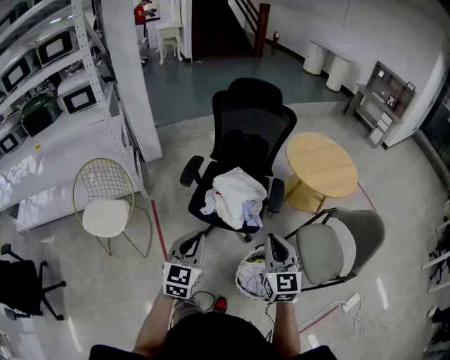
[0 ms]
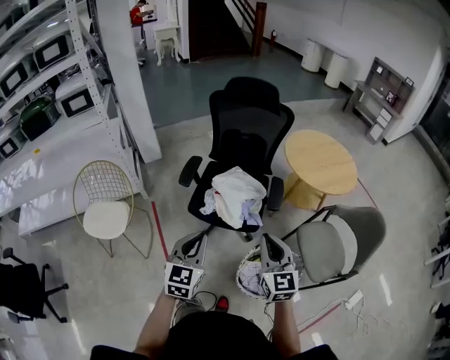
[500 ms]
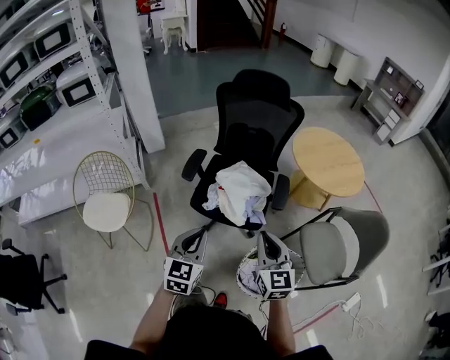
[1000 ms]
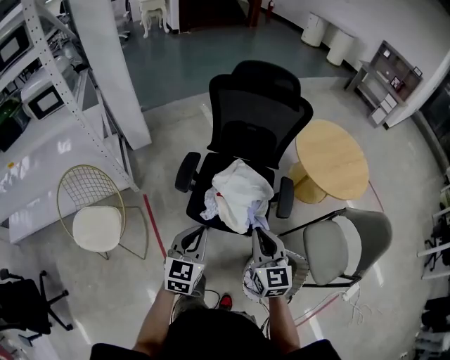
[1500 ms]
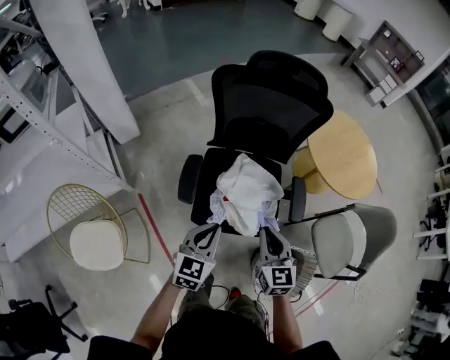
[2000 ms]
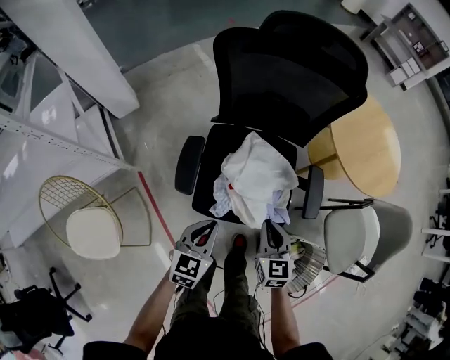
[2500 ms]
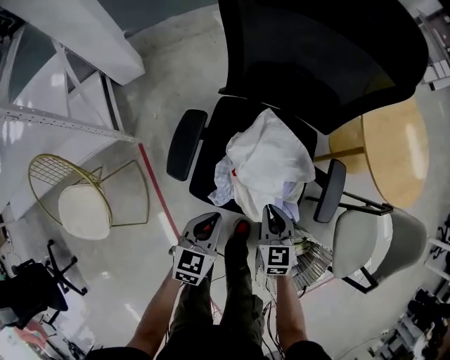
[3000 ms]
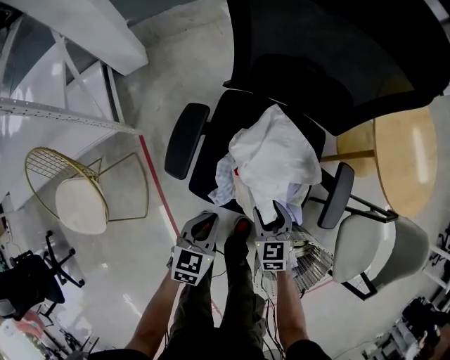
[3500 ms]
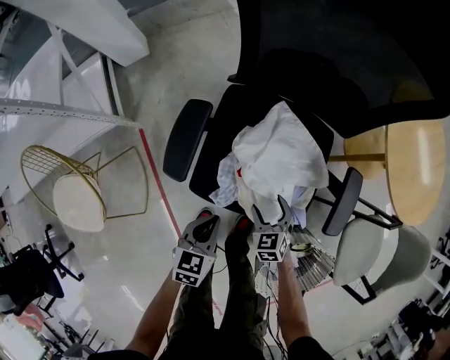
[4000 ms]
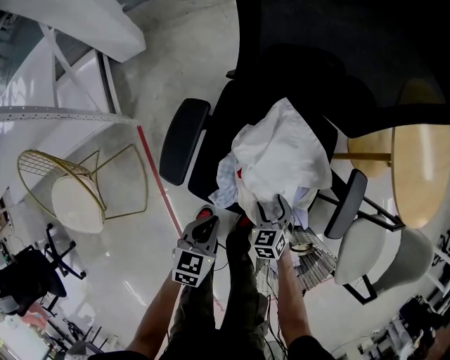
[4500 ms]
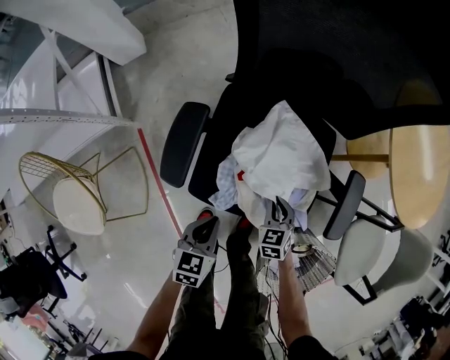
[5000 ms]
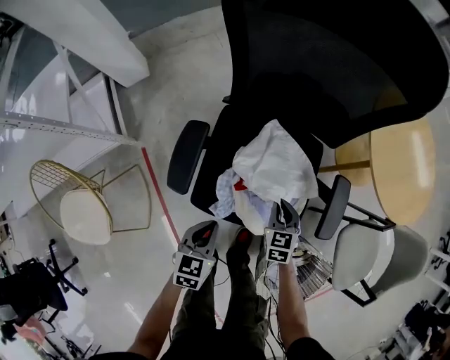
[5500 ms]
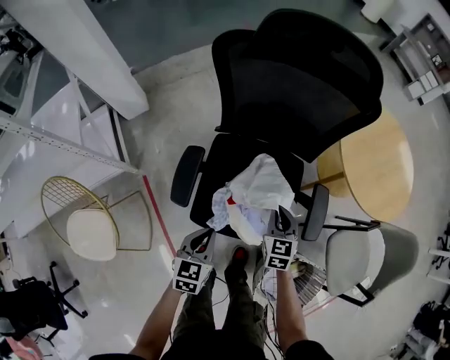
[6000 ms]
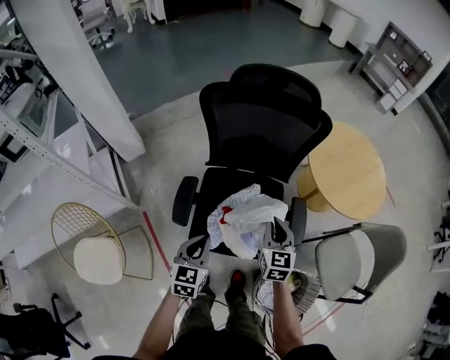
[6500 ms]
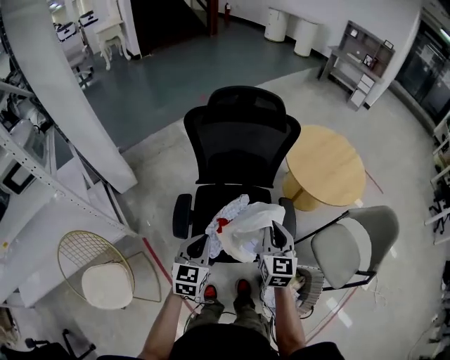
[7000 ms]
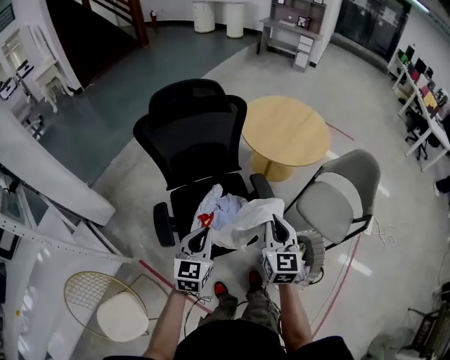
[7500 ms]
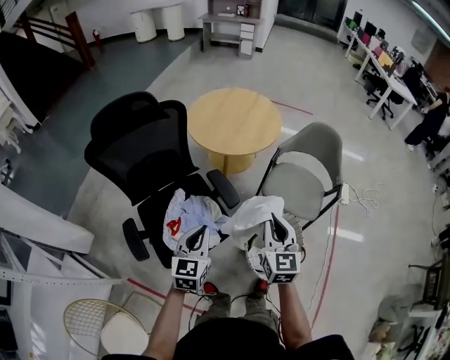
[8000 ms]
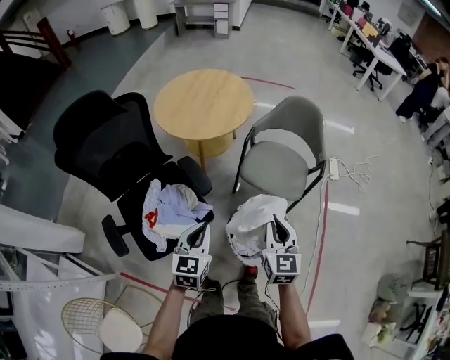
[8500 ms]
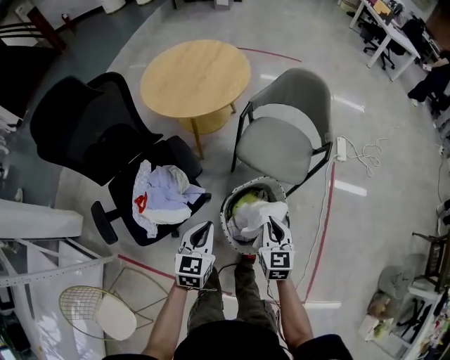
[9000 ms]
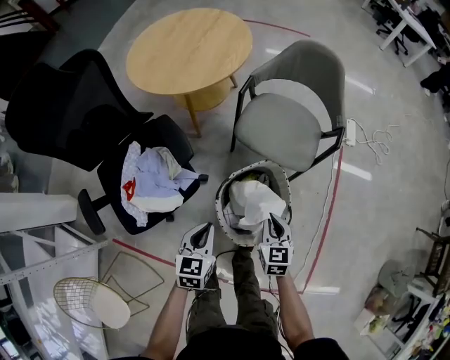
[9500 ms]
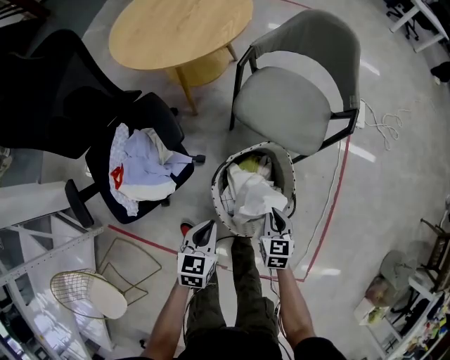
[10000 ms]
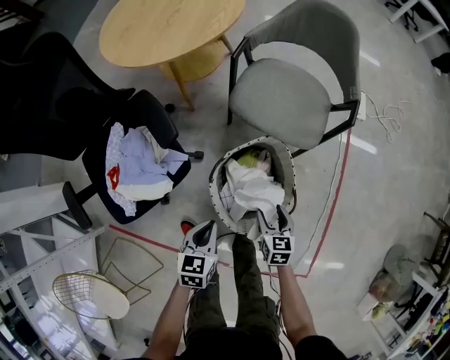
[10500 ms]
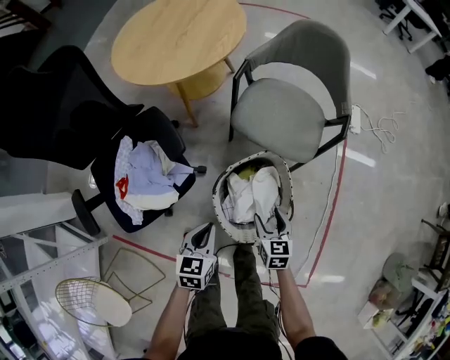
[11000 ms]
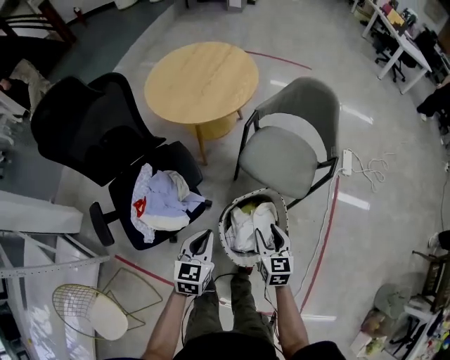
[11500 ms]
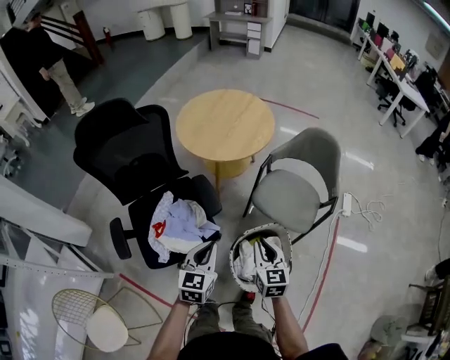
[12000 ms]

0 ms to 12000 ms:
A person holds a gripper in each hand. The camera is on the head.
0 ms to 2000 ms: The right gripper heads forward, to the left and downward, covering about 35 cm; the left gripper goes roughly 30 cm forward and downward, and rotates roughly 20 degrees.
2000 ms to 4000 ms: Both grippers move downward, some 35 cm. The right gripper tips its fingers downward by some 30 degrees, and opens its fingers. The left gripper turns by roughly 30 degrees.
4000 ms to 6000 ms: The right gripper moves upward and forward, approximately 20 cm, changes its angle by about 30 degrees, and closes its fingers; the left gripper goes some 10 cm upward.
6000 ms to 8000 ms: The right gripper ends up about 50 cm from where it was, and swivels about 50 degrees, while the left gripper is displaced upward by some 20 cm, and changes its angle by roughly 50 degrees.
8000 ms to 10000 ms: Both grippers move downward and to the right, roughly 40 cm. The right gripper tilts its fingers roughly 30 degrees downward. Meanwhile the left gripper rotates about 30 degrees.
10000 ms to 12000 ms: The right gripper shifts some 30 cm upward and to the left, turns by some 20 degrees, and opens, then closes once more. The left gripper travels upward by about 25 cm, and swivels some 20 degrees.

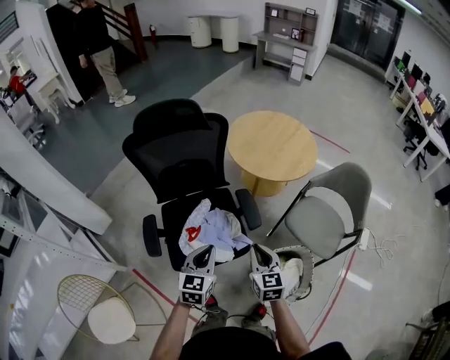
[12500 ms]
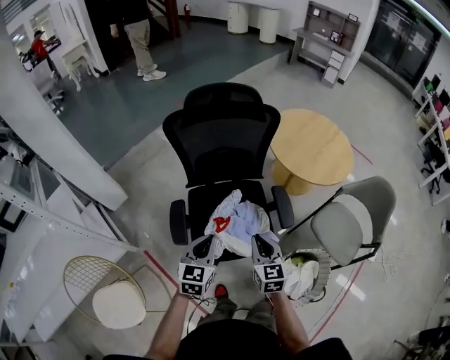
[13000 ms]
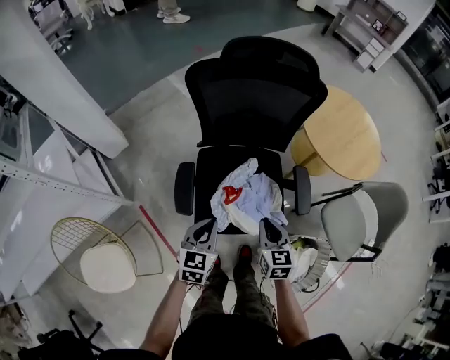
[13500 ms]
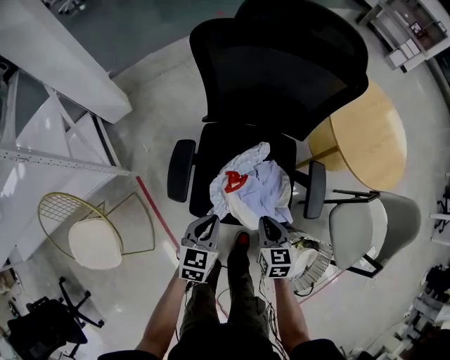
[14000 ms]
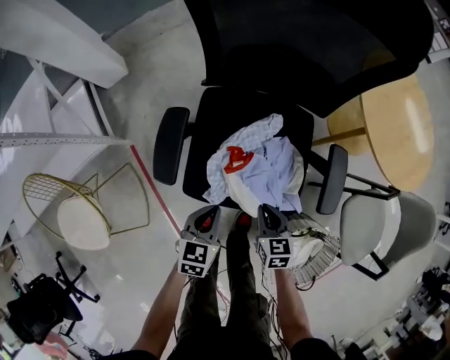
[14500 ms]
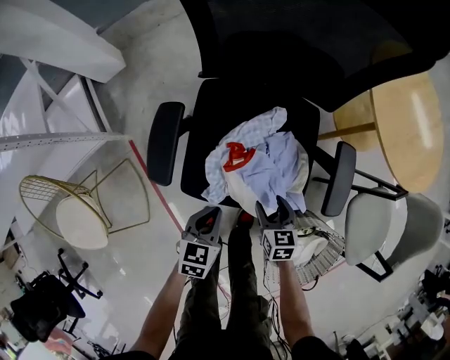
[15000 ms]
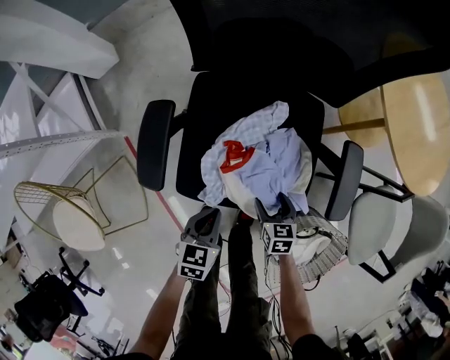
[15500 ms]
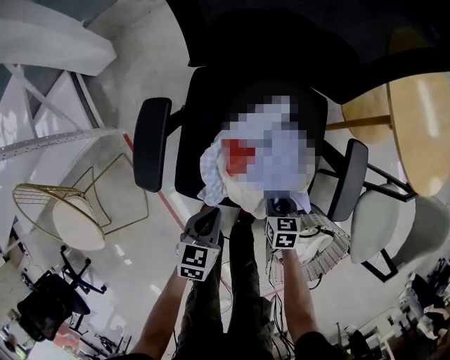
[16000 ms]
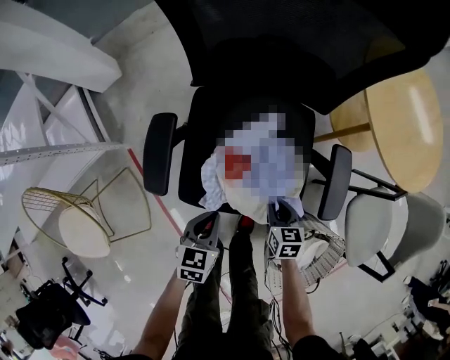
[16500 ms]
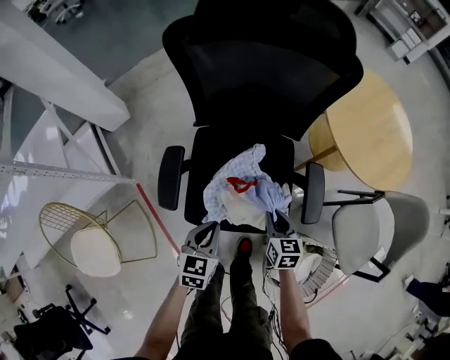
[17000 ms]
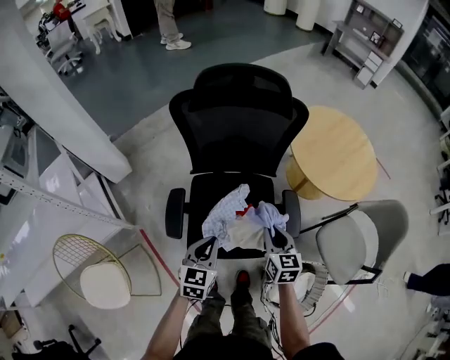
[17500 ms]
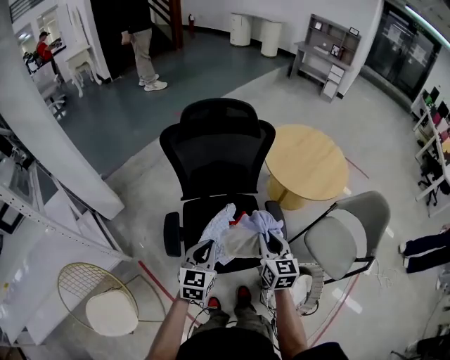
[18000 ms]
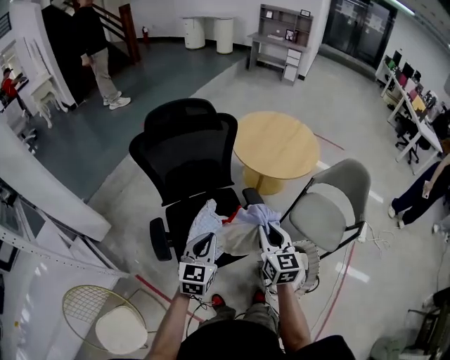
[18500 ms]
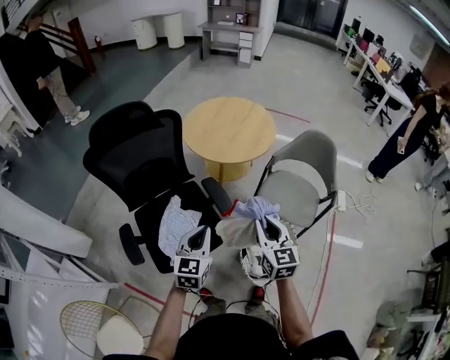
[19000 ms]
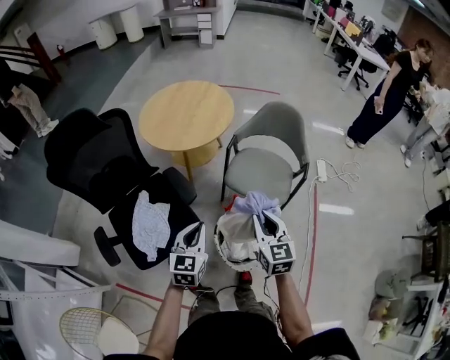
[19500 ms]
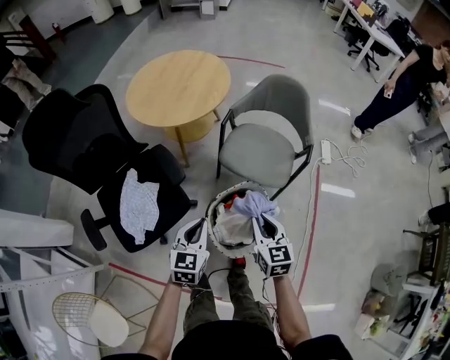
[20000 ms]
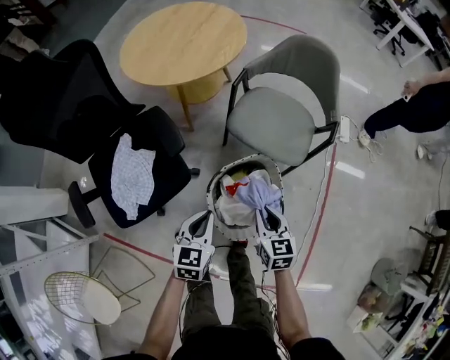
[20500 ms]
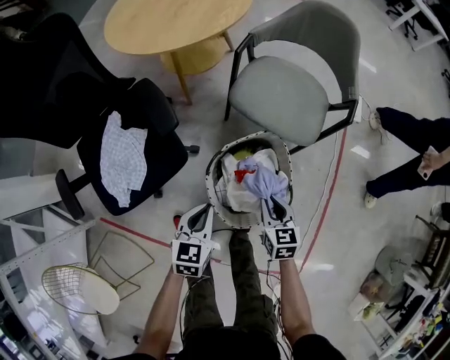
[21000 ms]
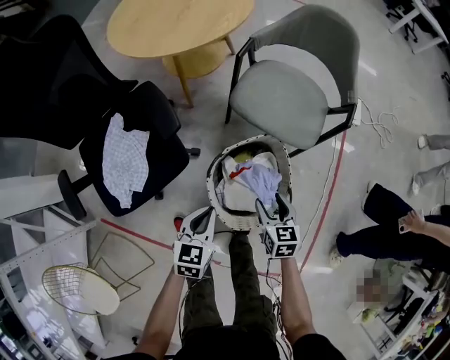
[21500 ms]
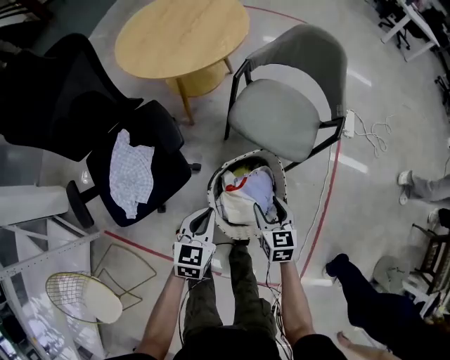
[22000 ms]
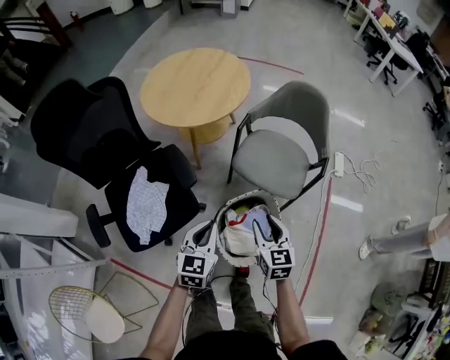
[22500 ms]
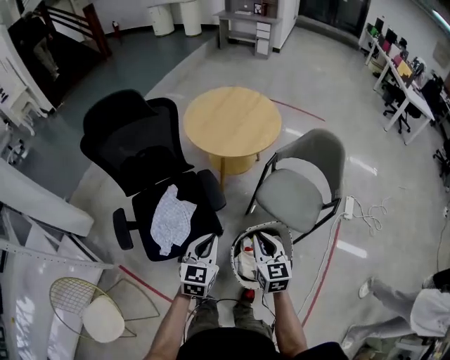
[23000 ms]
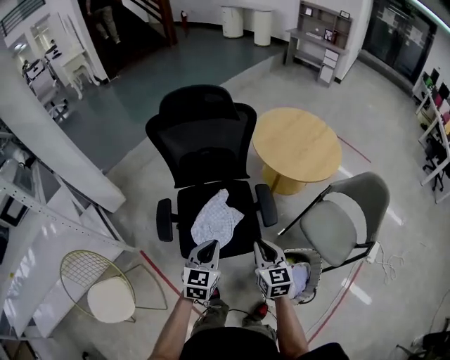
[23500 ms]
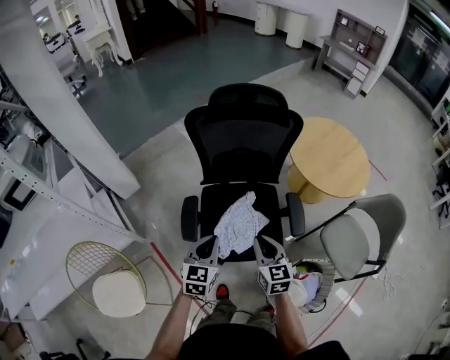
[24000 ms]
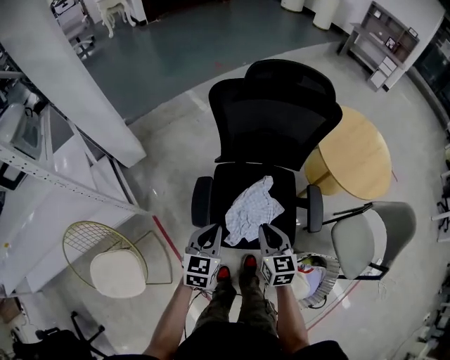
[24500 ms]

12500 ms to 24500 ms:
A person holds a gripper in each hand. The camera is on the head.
12500 ms to 14500 ms: Both grippers move downward and to the left, some 35 cm. The left gripper rotates some 30 degrees; the right gripper rotates approximately 40 degrees.
14500 ms to 16500 ms: The right gripper heads downward and to the right, covering roughly 10 cm, and opens, then closes again.
16500 ms to 18500 ms: Both grippers travel together upward, roughly 40 cm. The left gripper rotates about 40 degrees; the right gripper tilts its fingers some 40 degrees upward.
18500 ms to 20500 ms: The grippers both shift to the right and downward by about 40 cm. The right gripper turns by approximately 30 degrees; the left gripper swivels about 30 degrees.
20500 ms to 22500 ms: Both grippers travel together upward, approximately 10 cm.
22500 ms to 24500 ms: Both grippers are carried about 50 cm. The right gripper changes its angle by about 40 degrees, and closes up. Meanwhile the left gripper turns by roughly 40 degrees.

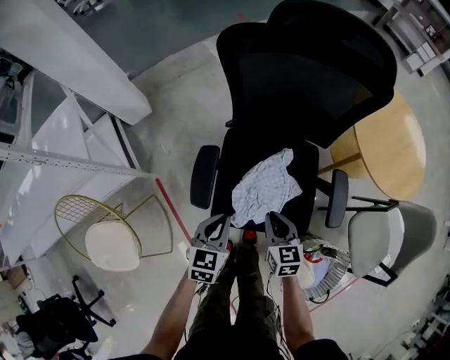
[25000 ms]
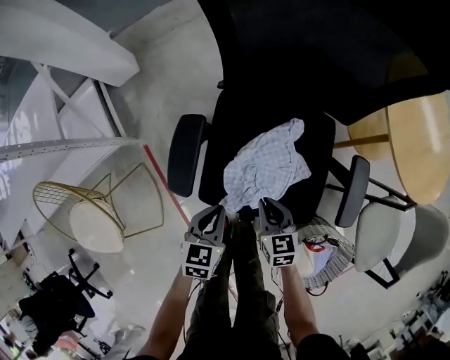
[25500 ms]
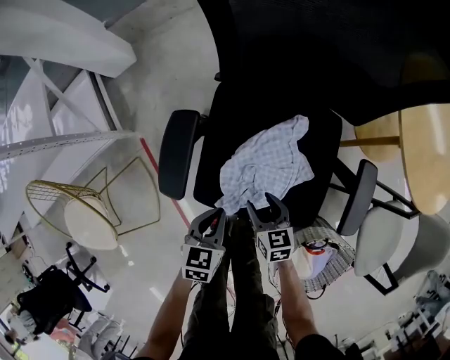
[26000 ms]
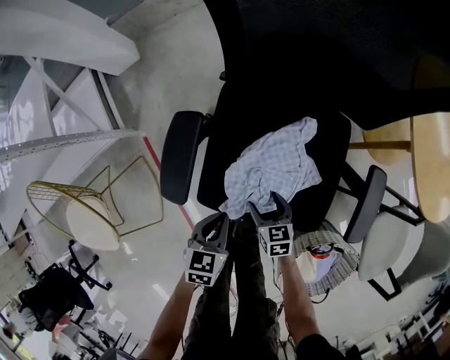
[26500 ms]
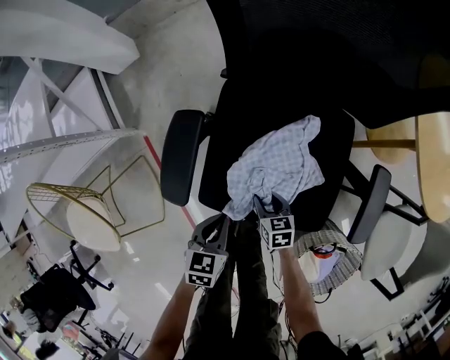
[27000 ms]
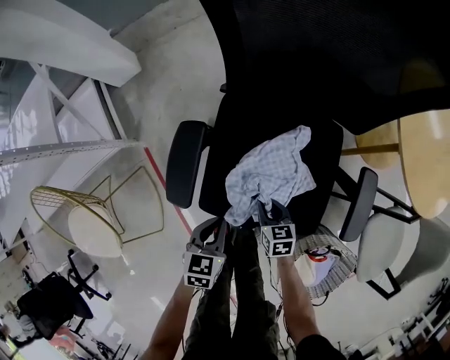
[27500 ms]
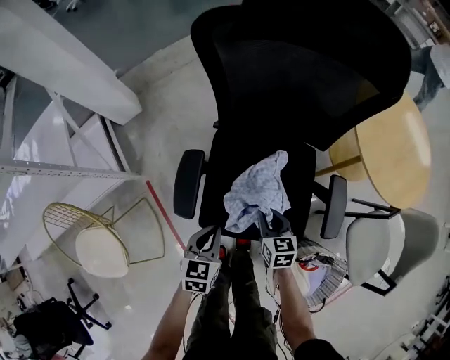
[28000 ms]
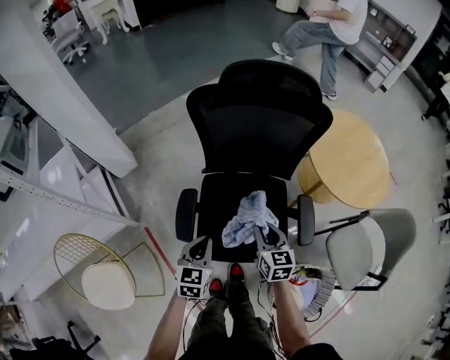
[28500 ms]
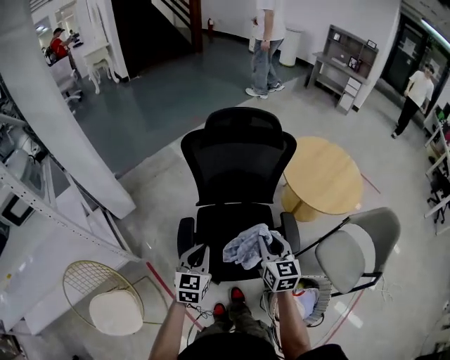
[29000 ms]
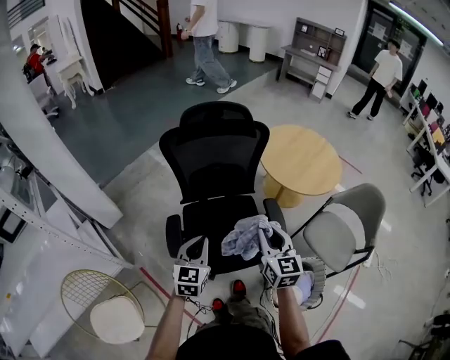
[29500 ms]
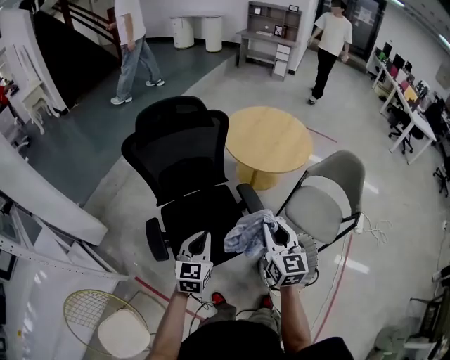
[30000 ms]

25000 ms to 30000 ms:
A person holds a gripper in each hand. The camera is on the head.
25000 ms to 27500 ms: The grippers both shift downward by approximately 20 cm. The right gripper opens, then closes once more.
27500 ms to 30000 ms: The two grippers go about 50 cm upward. The left gripper rotates approximately 50 degrees. The right gripper angles its fingers upward, by roughly 40 degrees.
